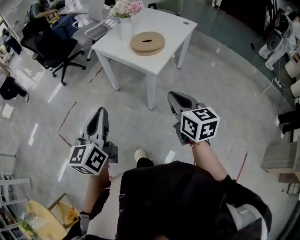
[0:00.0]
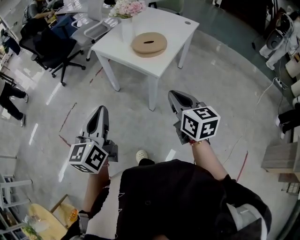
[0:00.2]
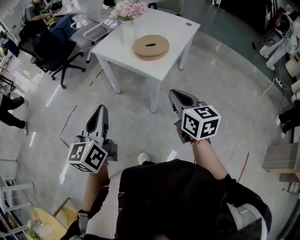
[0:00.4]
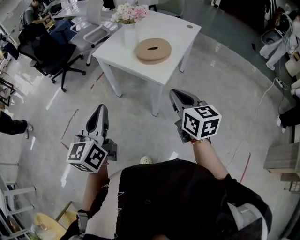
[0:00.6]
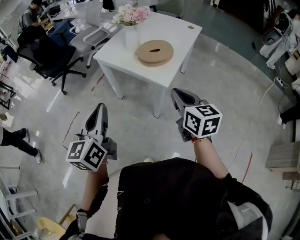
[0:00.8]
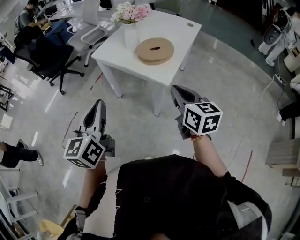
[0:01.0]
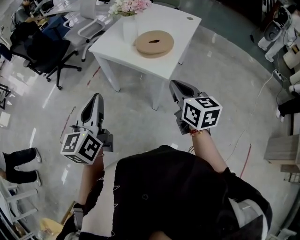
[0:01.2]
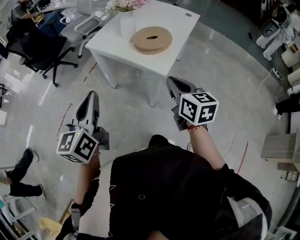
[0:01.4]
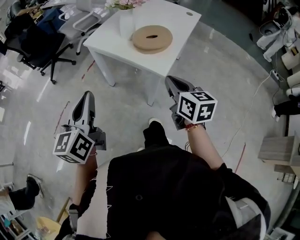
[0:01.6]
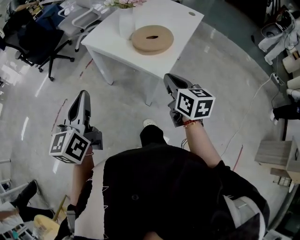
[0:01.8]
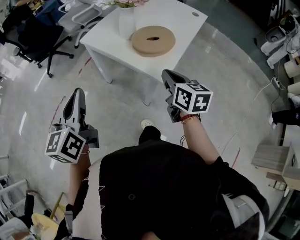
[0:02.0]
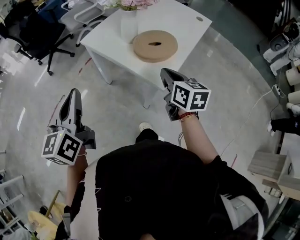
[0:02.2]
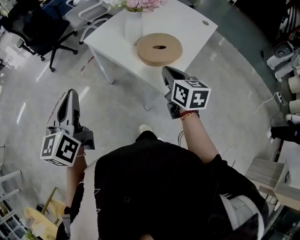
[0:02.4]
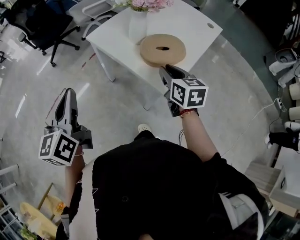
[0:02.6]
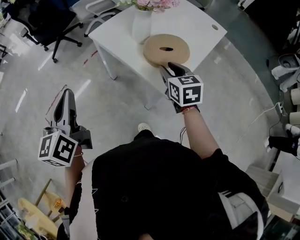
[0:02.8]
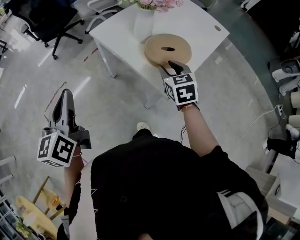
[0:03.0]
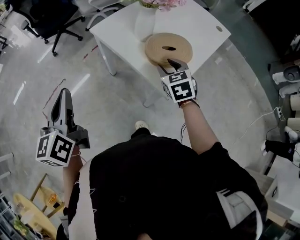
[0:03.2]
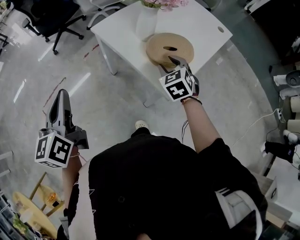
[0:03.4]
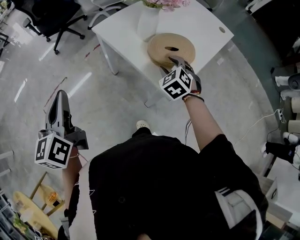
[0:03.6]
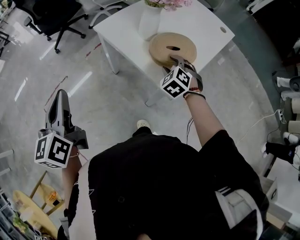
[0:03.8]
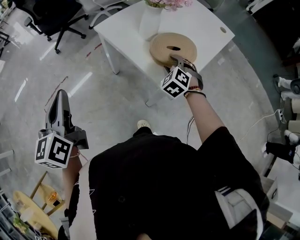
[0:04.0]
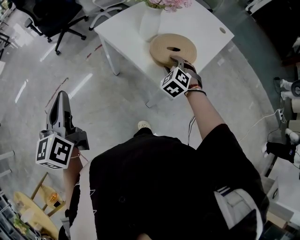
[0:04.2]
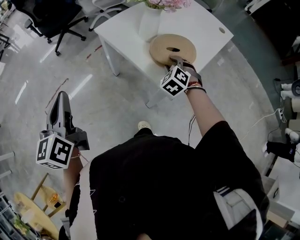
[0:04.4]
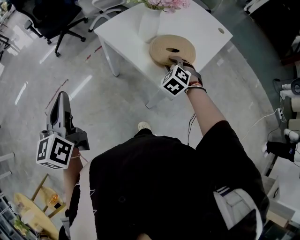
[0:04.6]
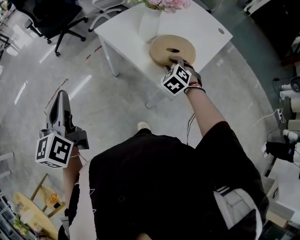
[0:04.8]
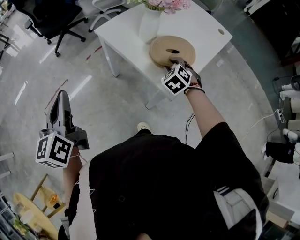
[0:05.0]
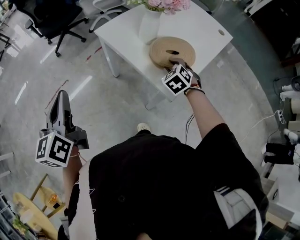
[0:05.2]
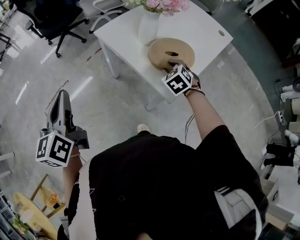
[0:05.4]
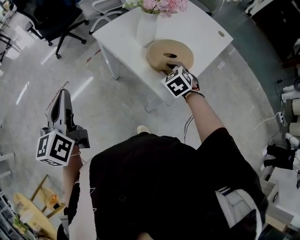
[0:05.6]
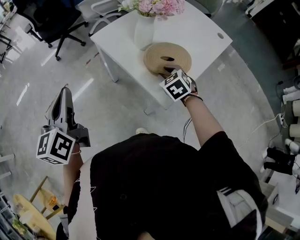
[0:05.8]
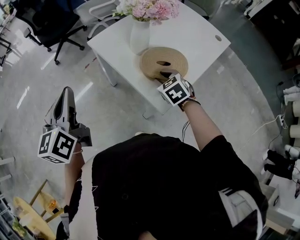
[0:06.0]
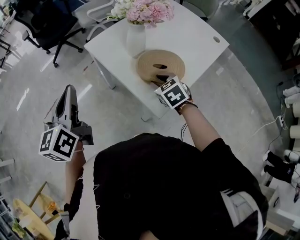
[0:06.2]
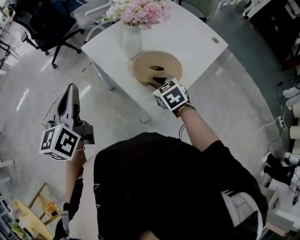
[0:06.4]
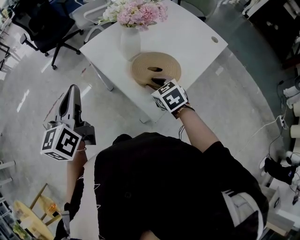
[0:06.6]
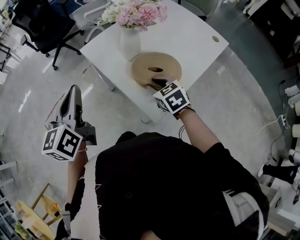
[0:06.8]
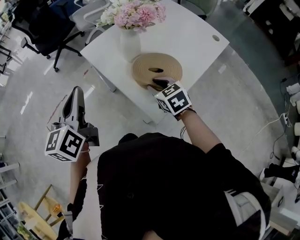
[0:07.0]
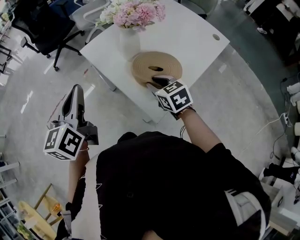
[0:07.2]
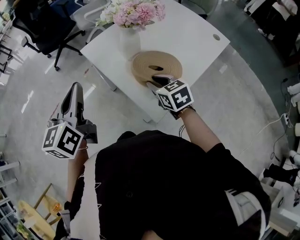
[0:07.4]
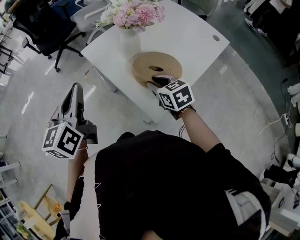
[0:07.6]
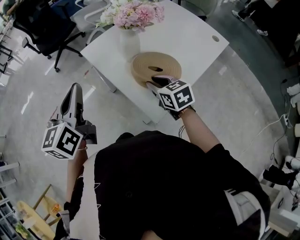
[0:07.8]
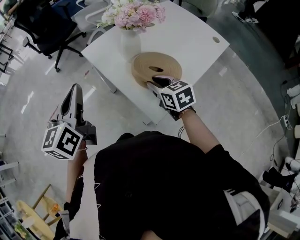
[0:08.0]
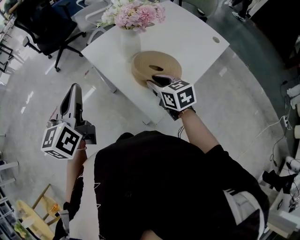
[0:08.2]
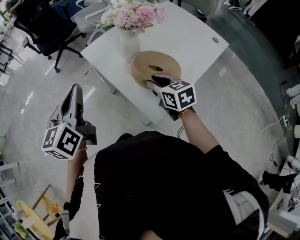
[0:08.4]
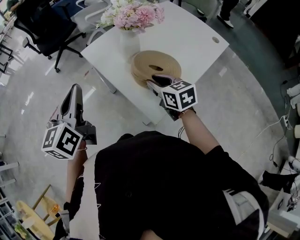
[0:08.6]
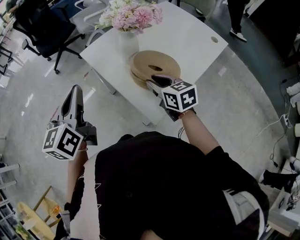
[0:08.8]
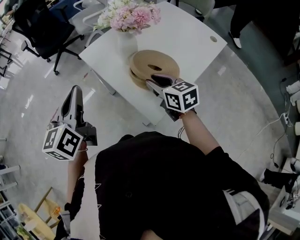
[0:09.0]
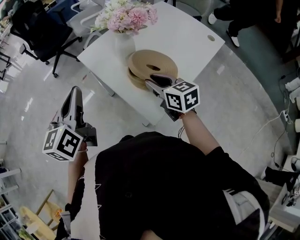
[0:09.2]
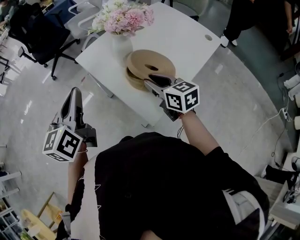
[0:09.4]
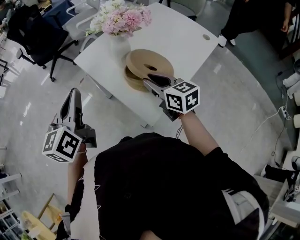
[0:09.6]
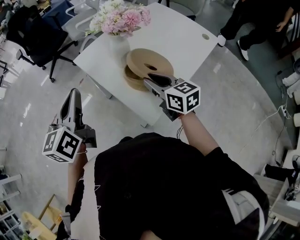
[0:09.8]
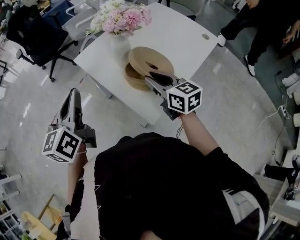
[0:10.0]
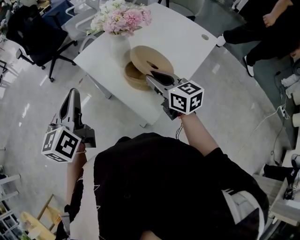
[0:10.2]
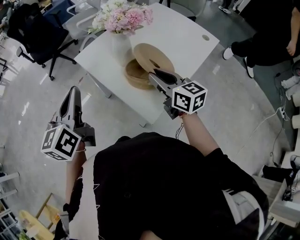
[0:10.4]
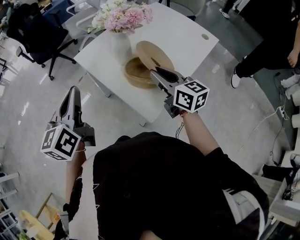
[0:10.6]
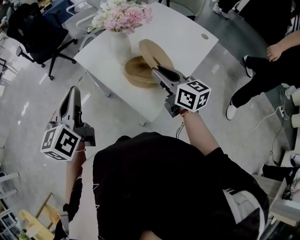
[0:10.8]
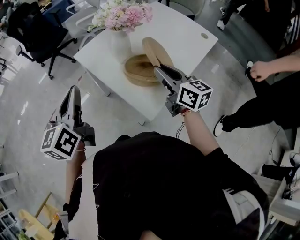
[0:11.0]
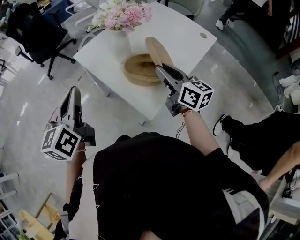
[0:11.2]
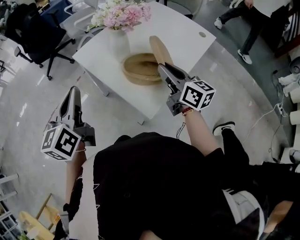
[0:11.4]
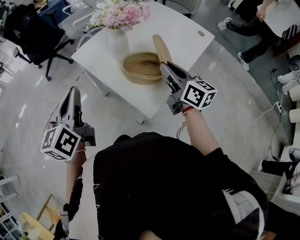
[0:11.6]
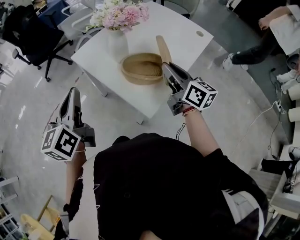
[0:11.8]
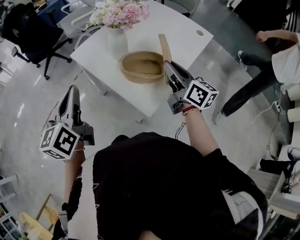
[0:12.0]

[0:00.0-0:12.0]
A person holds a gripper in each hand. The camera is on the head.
0:00.0 to 0:01.6: The left gripper is displaced forward and to the left by approximately 15 cm. The right gripper goes approximately 15 cm forward.
0:01.6 to 0:03.0: The right gripper travels forward by about 20 cm, changes its angle by some 30 degrees, and opens its fingers. Meanwhile the left gripper goes approximately 10 cm forward, and turns by about 20 degrees.
0:03.0 to 0:04.4: The right gripper travels downward by approximately 10 cm, and rolls counterclockwise, seen from behind, by about 40 degrees.
0:04.4 to 0:06.0: The left gripper goes some 10 cm to the right and forward; the right gripper turns by about 30 degrees.
0:06.0 to 0:07.6: The left gripper is displaced to the right by approximately 10 cm, while the right gripper changes its angle by roughly 20 degrees.
0:07.6 to 0:09.0: There are only small adjustments of the grippers.
0:09.0 to 0:10.4: The right gripper goes approximately 5 cm upward.
0:10.4 to 0:12.0: The right gripper heads to the right, covering approximately 5 cm, and turns by roughly 20 degrees.

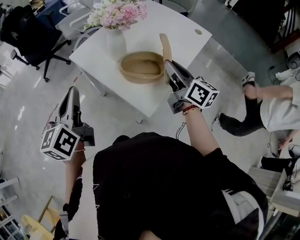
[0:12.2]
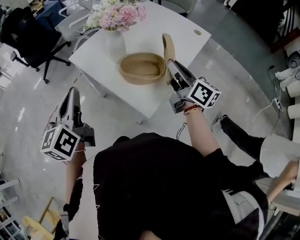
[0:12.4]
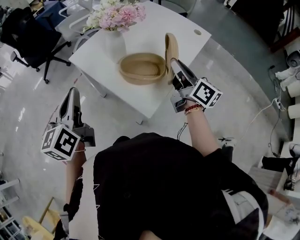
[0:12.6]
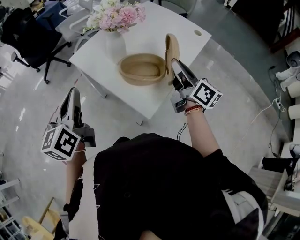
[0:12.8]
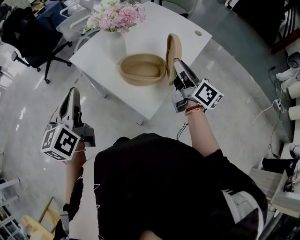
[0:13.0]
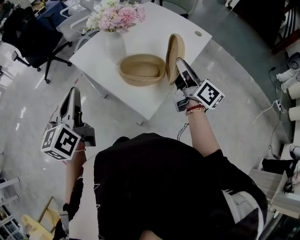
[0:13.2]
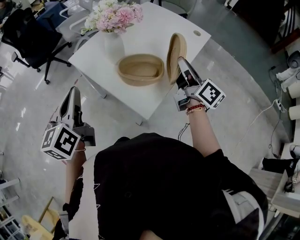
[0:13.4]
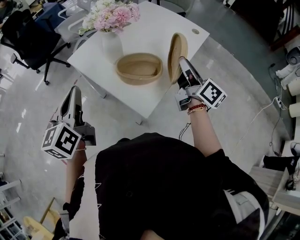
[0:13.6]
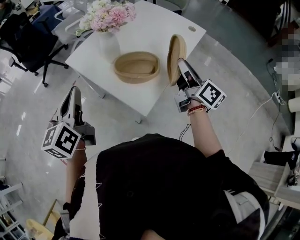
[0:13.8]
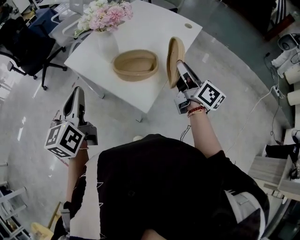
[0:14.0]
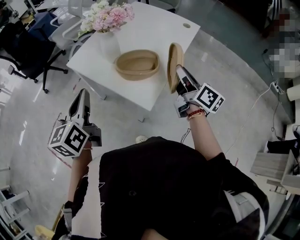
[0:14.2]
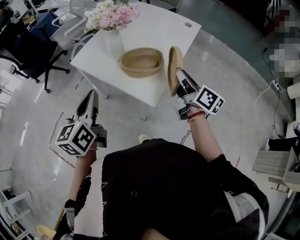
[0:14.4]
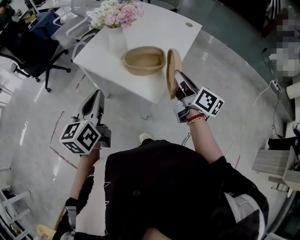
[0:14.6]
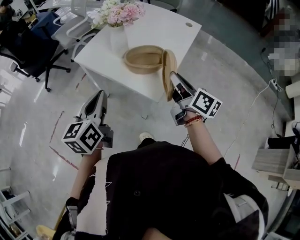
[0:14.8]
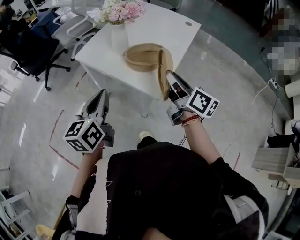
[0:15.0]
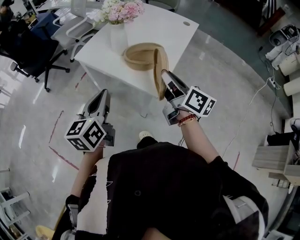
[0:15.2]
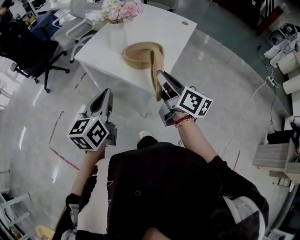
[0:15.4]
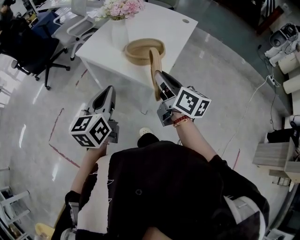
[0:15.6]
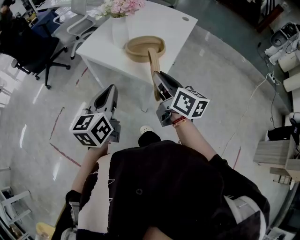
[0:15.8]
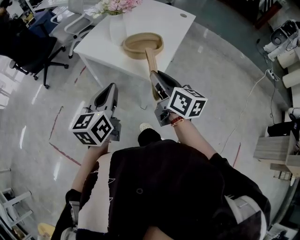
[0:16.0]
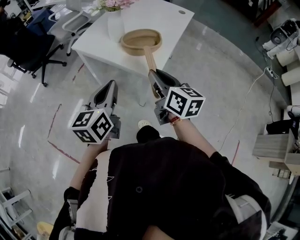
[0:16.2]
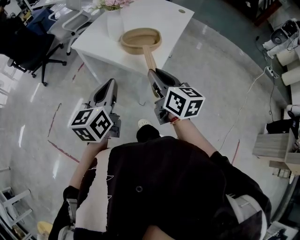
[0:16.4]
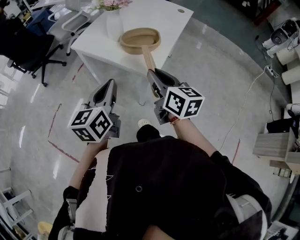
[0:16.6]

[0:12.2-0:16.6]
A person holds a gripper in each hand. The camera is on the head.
0:12.2 to 0:13.6: The right gripper travels to the right by approximately 5 cm.
0:13.6 to 0:15.2: The left gripper is displaced backward by some 10 cm; the right gripper shifts roughly 20 cm backward and to the left.
0:15.2 to 0:16.6: The right gripper goes some 5 cm backward, and turns by some 20 degrees. Meanwhile the left gripper changes place by about 5 cm.

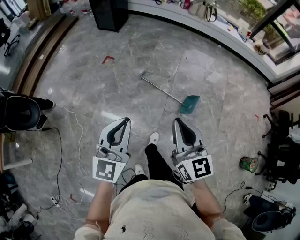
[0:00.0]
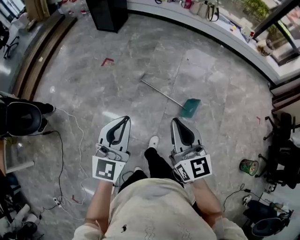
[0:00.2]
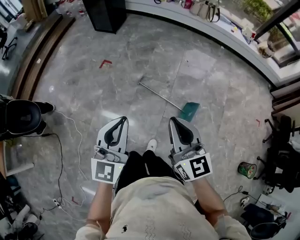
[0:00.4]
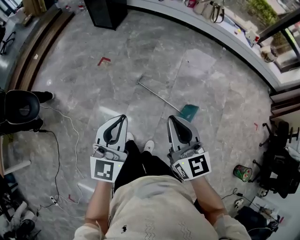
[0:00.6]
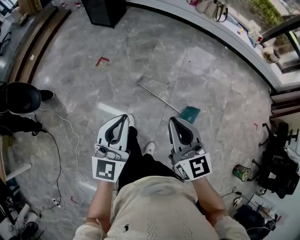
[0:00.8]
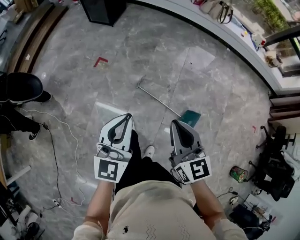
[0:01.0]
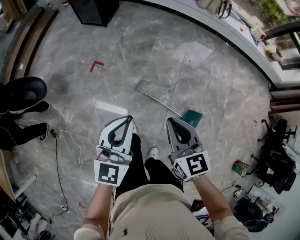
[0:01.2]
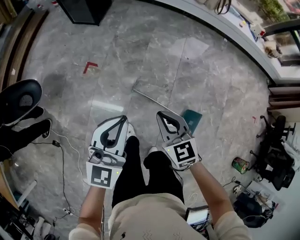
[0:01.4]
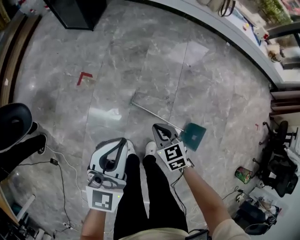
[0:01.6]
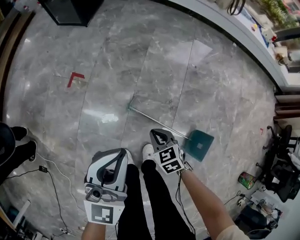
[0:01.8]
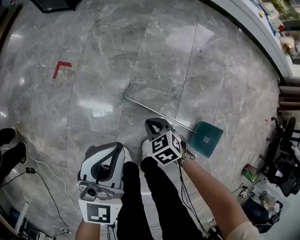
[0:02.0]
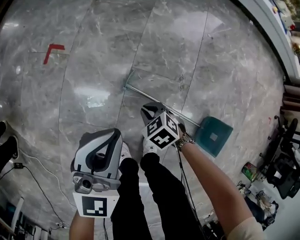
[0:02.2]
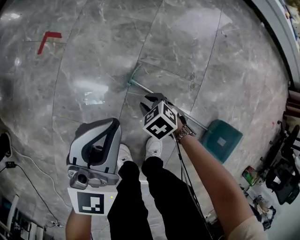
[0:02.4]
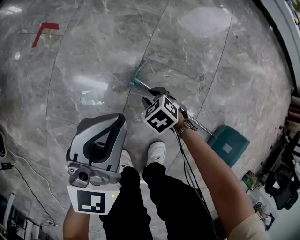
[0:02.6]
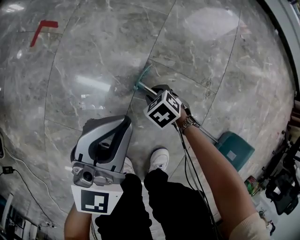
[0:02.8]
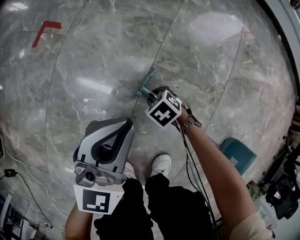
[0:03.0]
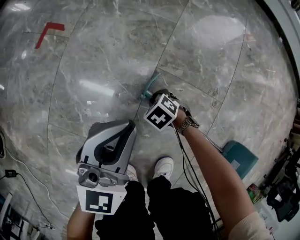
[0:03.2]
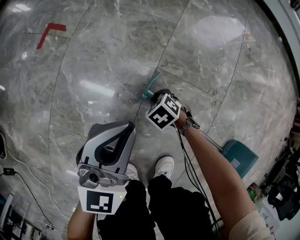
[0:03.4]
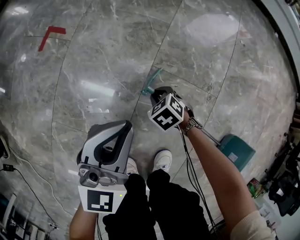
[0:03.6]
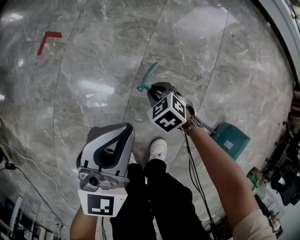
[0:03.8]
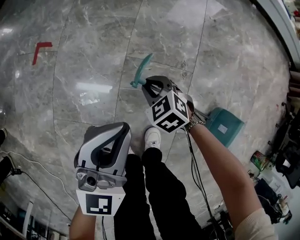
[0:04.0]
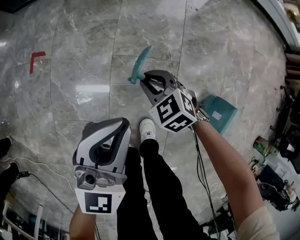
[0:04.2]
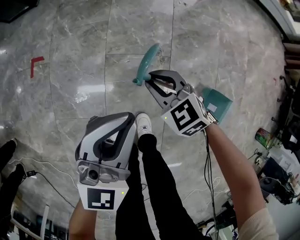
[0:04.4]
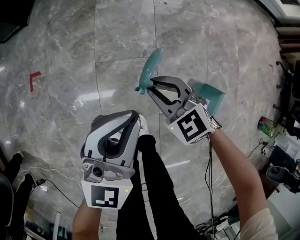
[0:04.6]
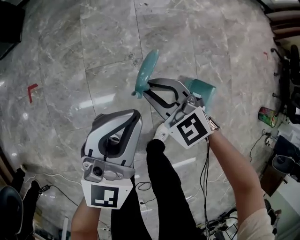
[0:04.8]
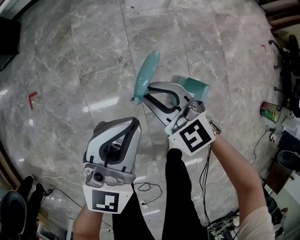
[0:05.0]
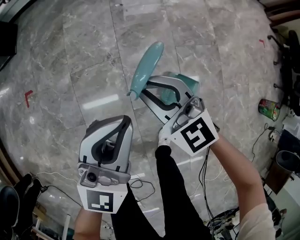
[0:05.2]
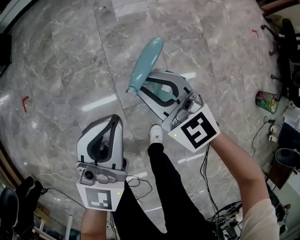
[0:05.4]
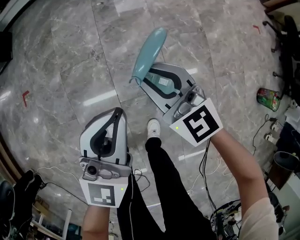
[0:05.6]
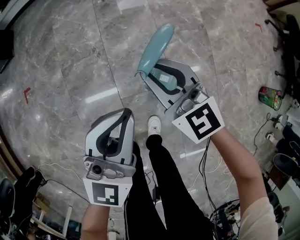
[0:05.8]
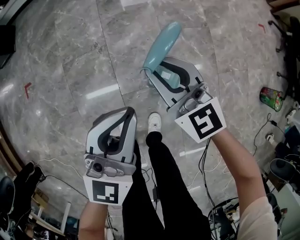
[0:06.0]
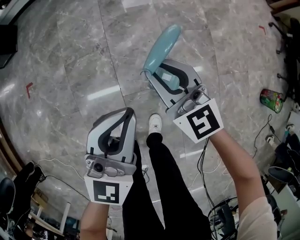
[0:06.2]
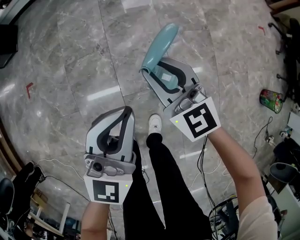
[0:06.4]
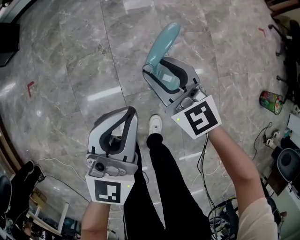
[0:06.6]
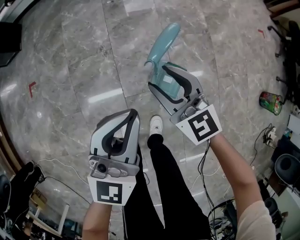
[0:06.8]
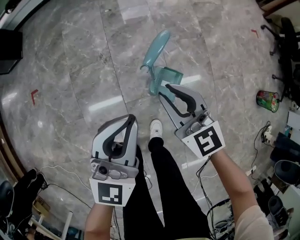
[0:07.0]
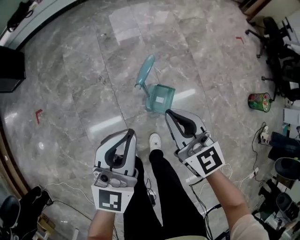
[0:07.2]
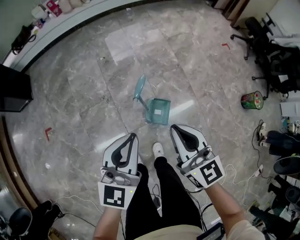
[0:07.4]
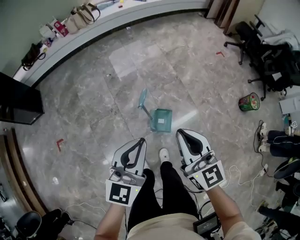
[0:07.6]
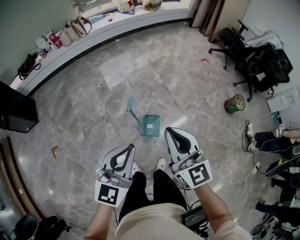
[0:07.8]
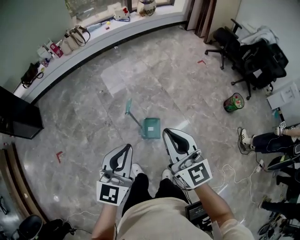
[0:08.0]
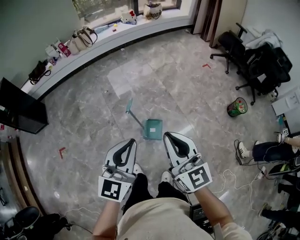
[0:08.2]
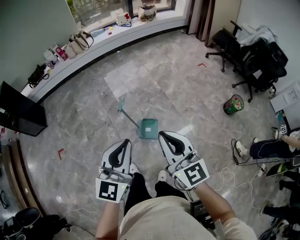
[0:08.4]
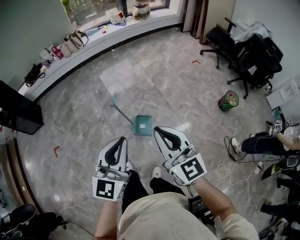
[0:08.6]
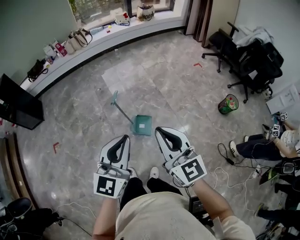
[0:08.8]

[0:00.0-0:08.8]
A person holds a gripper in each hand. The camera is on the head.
0:00.0 to 0:01.4: The pair of grippers is taken forward, about 50 cm. The right gripper shifts roughly 20 cm downward, and turns by about 30 degrees.
0:01.4 to 0:03.0: The two grippers go about 80 cm downward. The right gripper tips its fingers downward by approximately 40 degrees, and opens.
0:03.0 to 0:04.4: The grippers both shift upward by some 35 cm. The right gripper tips its fingers upward by roughly 30 degrees.
0:04.4 to 0:05.8: The two grippers travel together, to the right, about 50 cm. The right gripper heads upward, covering approximately 25 cm, and tilts its fingers roughly 30 degrees upward.
0:05.8 to 0:07.4: The right gripper shifts approximately 30 cm upward and backward, changes its angle by some 20 degrees, and opens and closes again; the left gripper is displaced upward by approximately 20 cm.
0:07.4 to 0:08.8: The two grippers go roughly 40 cm upward, backward and to the right.
